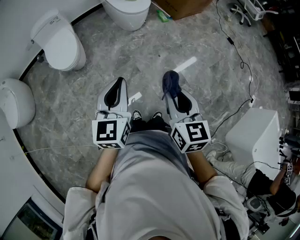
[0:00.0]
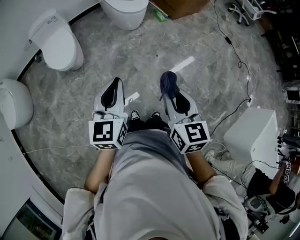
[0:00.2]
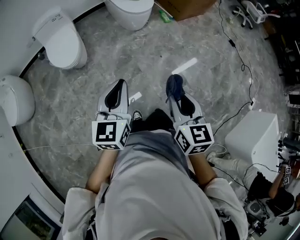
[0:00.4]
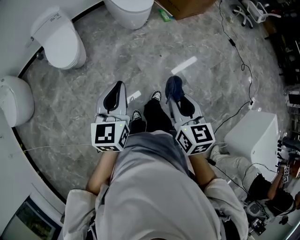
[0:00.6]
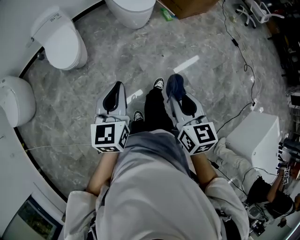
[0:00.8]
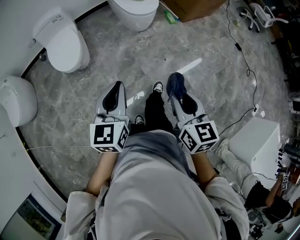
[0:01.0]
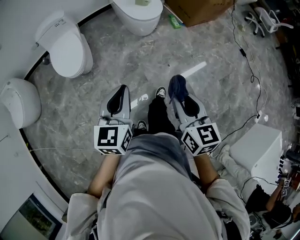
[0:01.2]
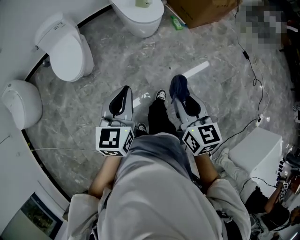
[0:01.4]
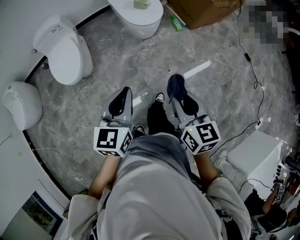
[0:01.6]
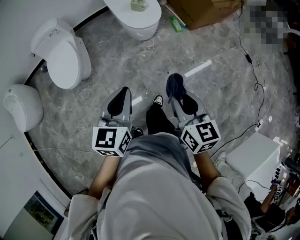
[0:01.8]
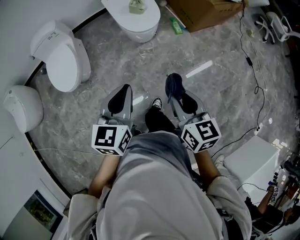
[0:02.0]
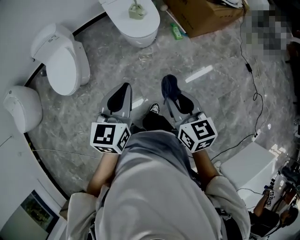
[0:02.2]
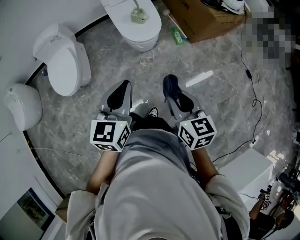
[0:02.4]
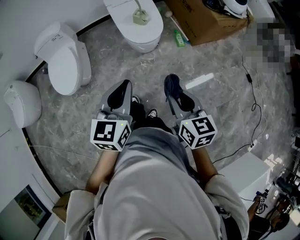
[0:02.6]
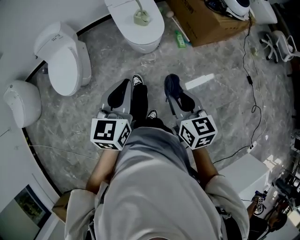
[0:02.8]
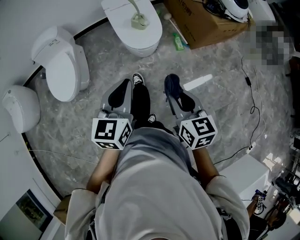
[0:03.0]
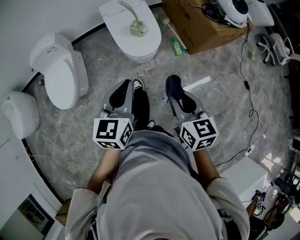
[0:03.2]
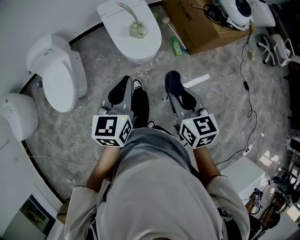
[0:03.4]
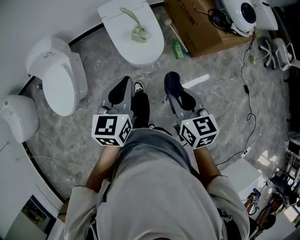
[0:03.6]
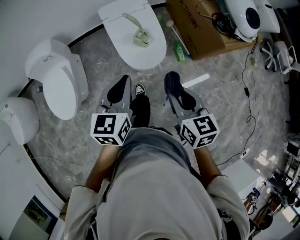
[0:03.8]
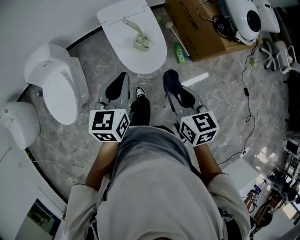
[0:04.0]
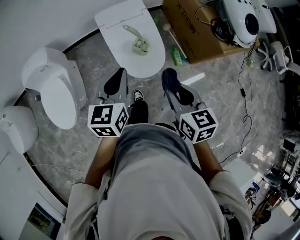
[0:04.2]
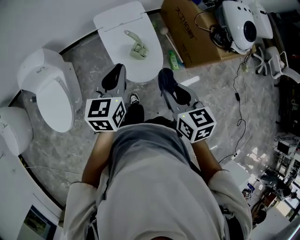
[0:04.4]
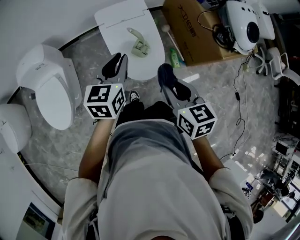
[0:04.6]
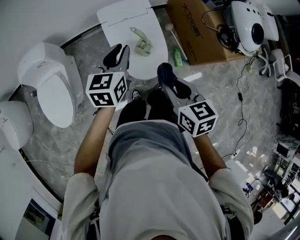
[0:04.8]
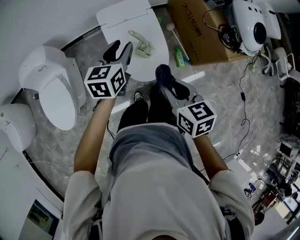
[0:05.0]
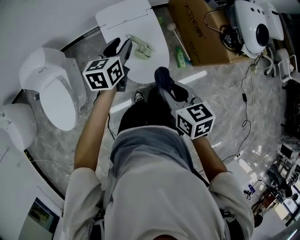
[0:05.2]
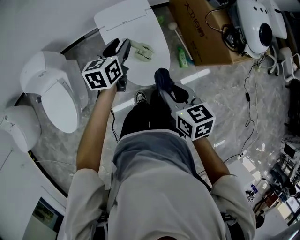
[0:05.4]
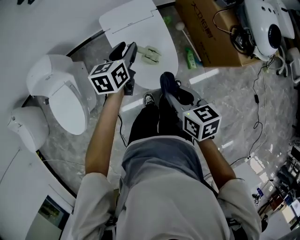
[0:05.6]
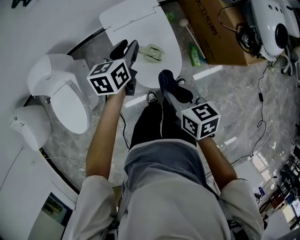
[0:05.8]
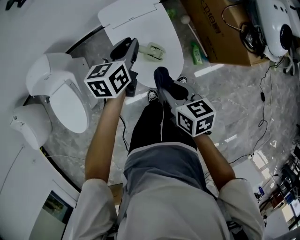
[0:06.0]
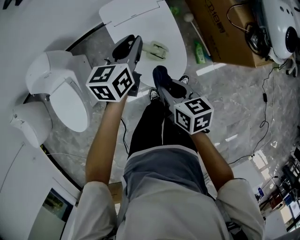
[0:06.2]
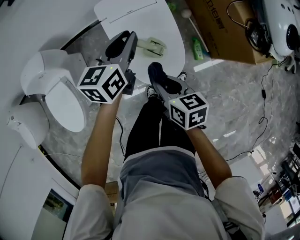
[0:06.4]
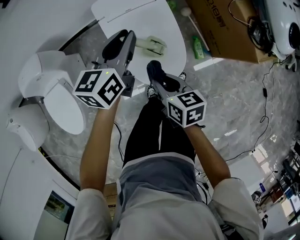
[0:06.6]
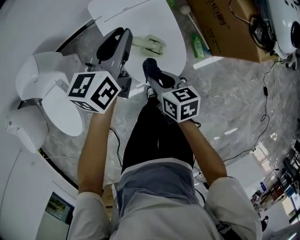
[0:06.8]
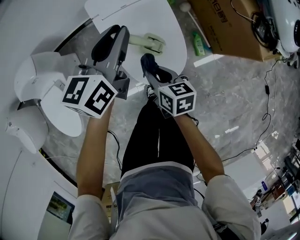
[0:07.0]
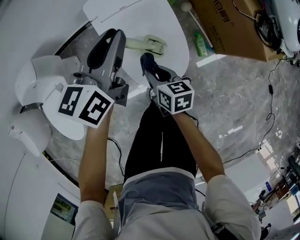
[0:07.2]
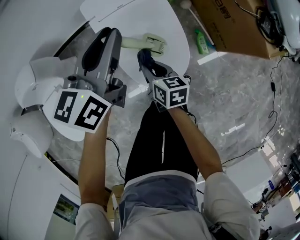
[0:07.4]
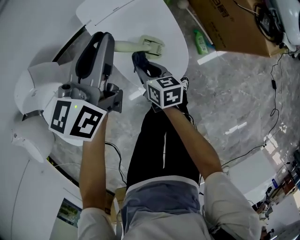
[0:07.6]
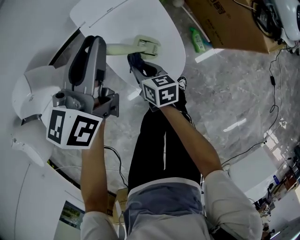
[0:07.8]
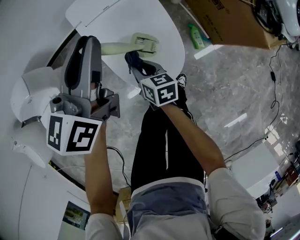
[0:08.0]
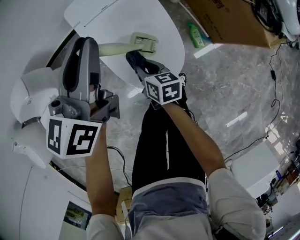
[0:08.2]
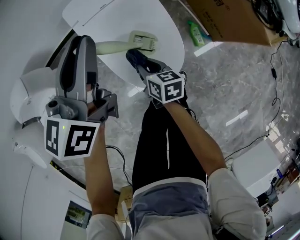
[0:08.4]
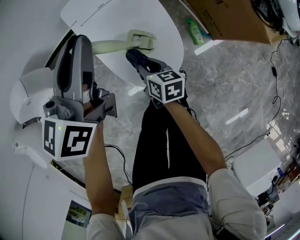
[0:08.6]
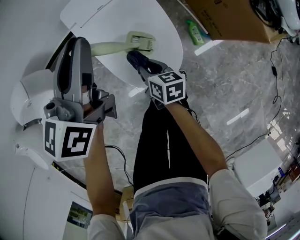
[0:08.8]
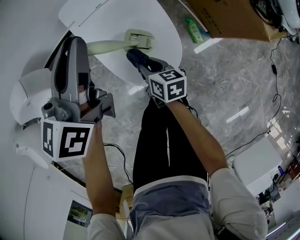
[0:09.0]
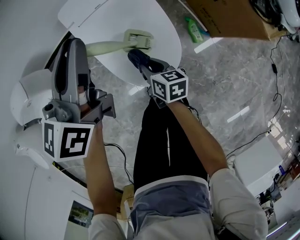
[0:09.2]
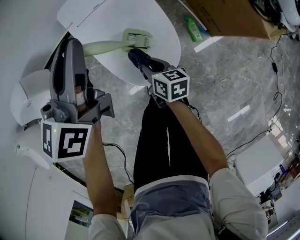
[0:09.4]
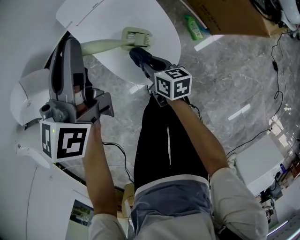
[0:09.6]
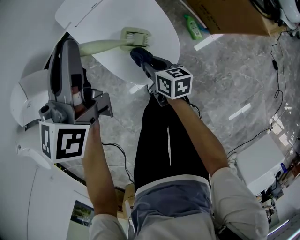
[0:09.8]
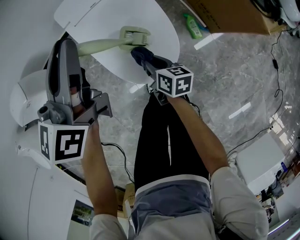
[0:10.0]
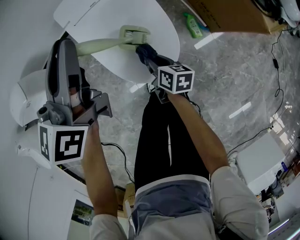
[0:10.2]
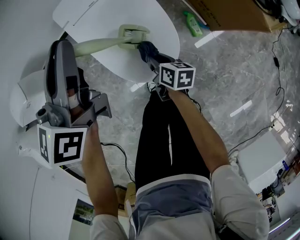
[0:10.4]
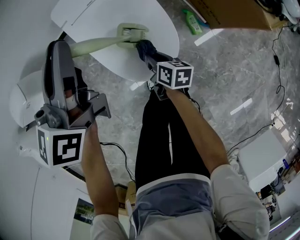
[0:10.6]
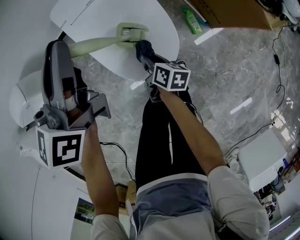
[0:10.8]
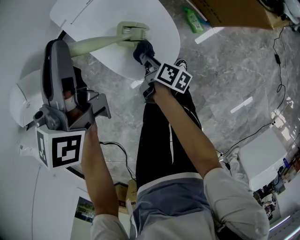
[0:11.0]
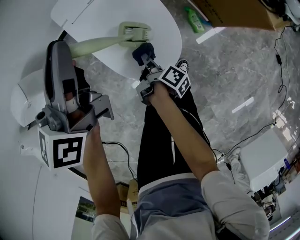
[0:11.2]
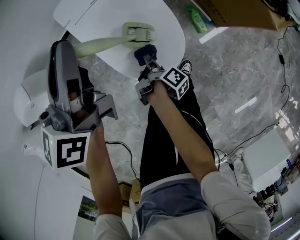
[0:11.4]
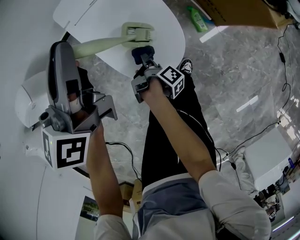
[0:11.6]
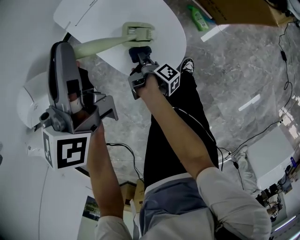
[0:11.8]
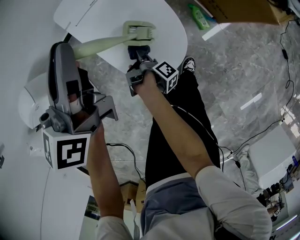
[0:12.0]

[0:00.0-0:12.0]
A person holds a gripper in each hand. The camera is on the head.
0:00.0 to 0:01.6: The grippers both shift forward by approximately 25 cm.
0:01.6 to 0:03.0: Both grippers travel together forward and to the right, approximately 25 cm.
0:03.0 to 0:04.4: The two grippers go some 35 cm forward.
0:04.4 to 0:06.0: The right gripper travels downward and forward by some 20 cm. Meanwhile the left gripper heads forward and downward, covering about 25 cm.
0:06.0 to 0:07.6: The right gripper is displaced downward by some 25 cm.
0:07.6 to 0:09.0: The right gripper ends up some 5 cm from where it was.
0:09.0 to 0:10.4: The right gripper shifts by about 5 cm.
0:10.4 to 0:12.0: The right gripper shifts approximately 5 cm to the left, and rolls clockwise, seen from behind, by some 80 degrees.

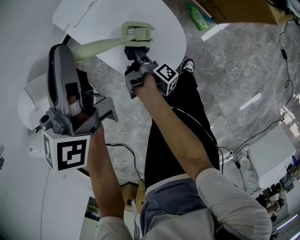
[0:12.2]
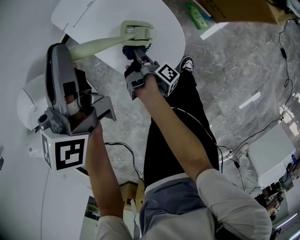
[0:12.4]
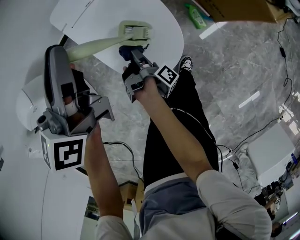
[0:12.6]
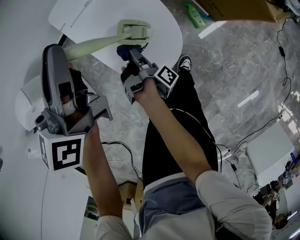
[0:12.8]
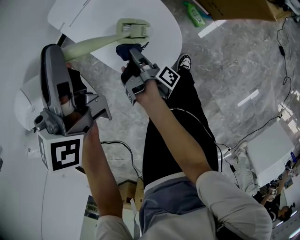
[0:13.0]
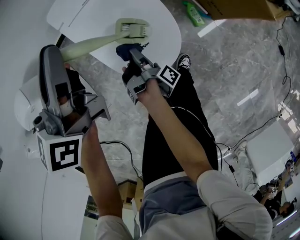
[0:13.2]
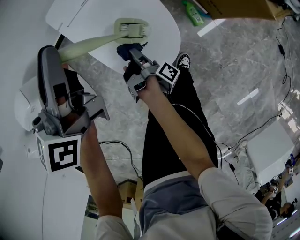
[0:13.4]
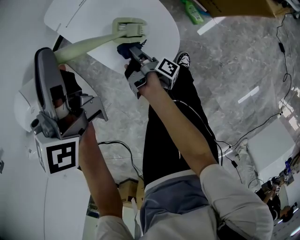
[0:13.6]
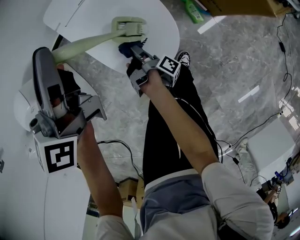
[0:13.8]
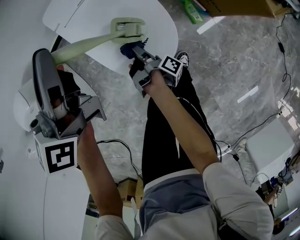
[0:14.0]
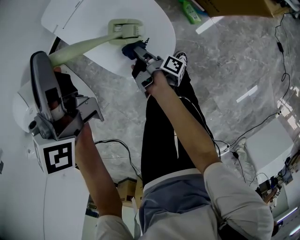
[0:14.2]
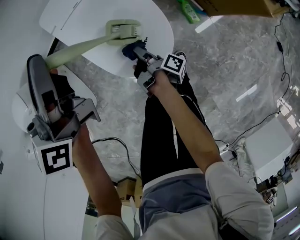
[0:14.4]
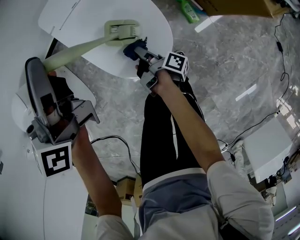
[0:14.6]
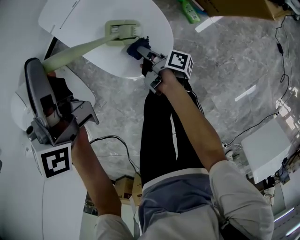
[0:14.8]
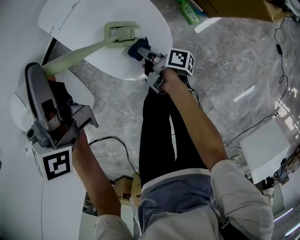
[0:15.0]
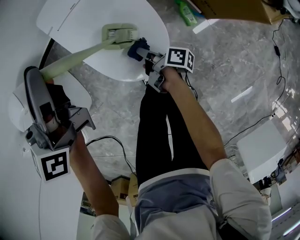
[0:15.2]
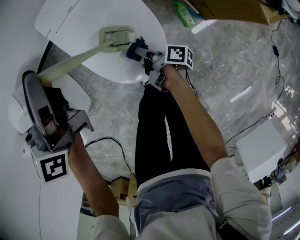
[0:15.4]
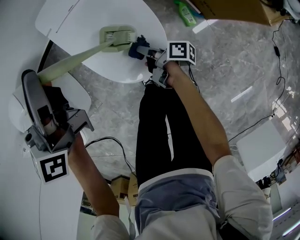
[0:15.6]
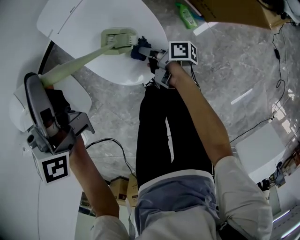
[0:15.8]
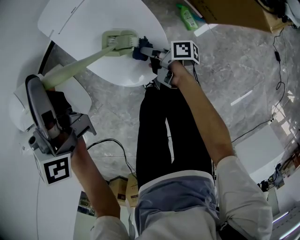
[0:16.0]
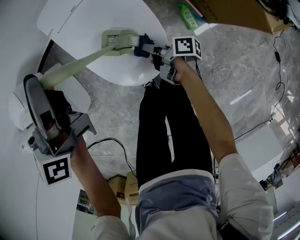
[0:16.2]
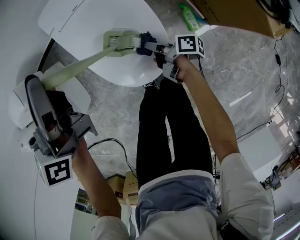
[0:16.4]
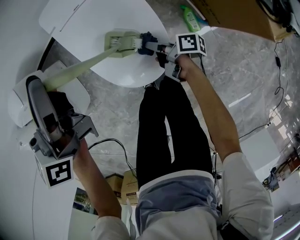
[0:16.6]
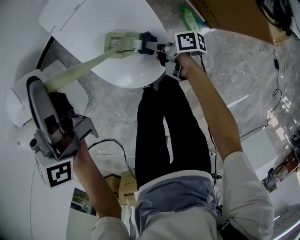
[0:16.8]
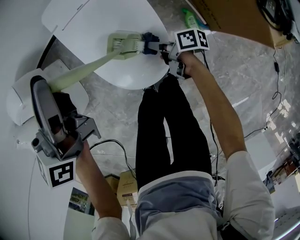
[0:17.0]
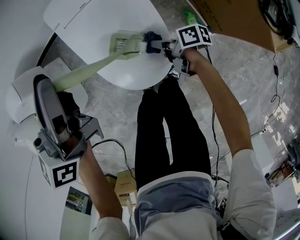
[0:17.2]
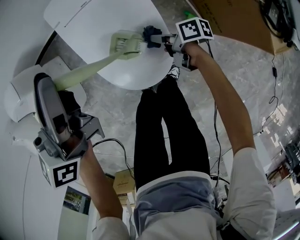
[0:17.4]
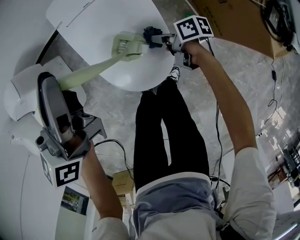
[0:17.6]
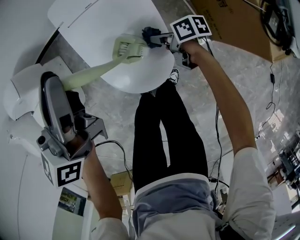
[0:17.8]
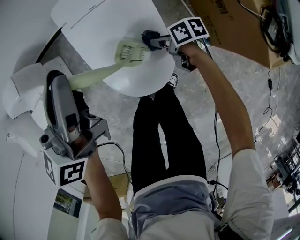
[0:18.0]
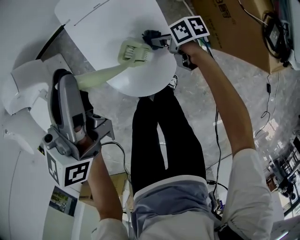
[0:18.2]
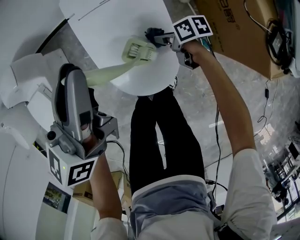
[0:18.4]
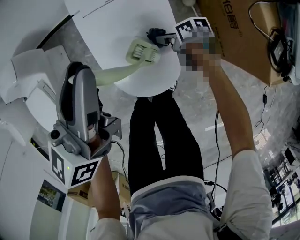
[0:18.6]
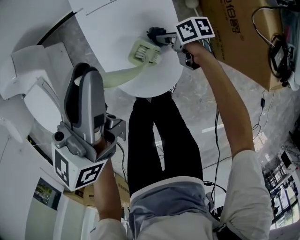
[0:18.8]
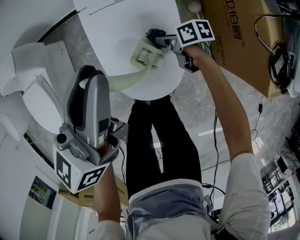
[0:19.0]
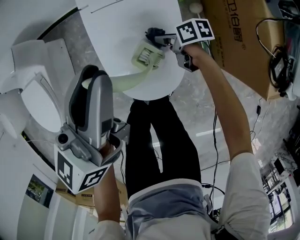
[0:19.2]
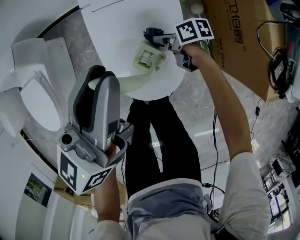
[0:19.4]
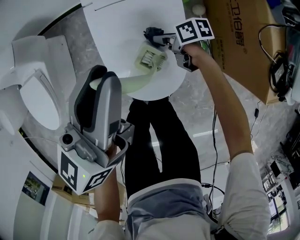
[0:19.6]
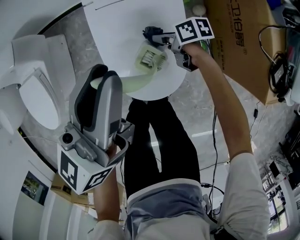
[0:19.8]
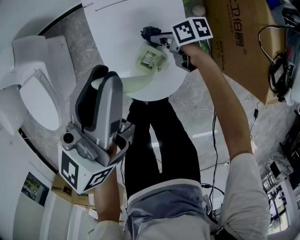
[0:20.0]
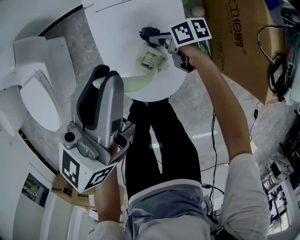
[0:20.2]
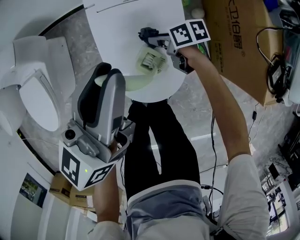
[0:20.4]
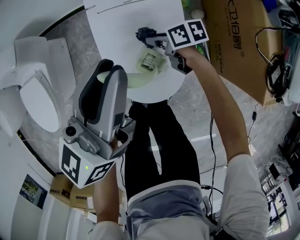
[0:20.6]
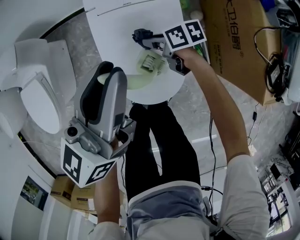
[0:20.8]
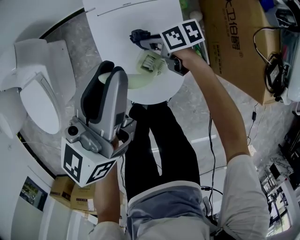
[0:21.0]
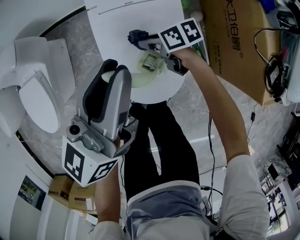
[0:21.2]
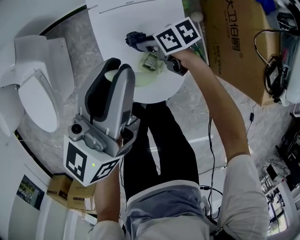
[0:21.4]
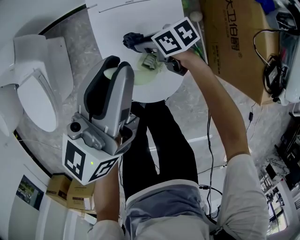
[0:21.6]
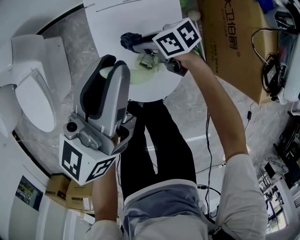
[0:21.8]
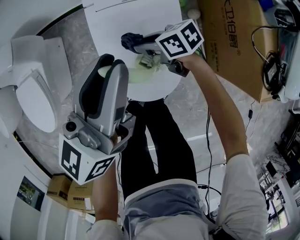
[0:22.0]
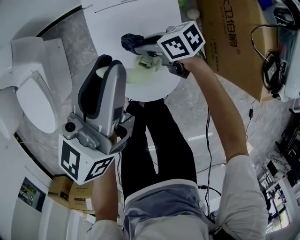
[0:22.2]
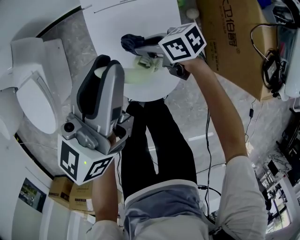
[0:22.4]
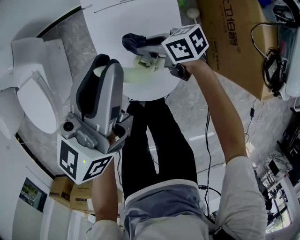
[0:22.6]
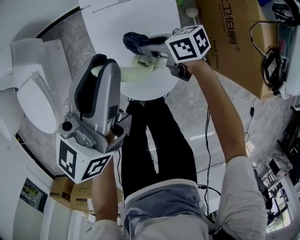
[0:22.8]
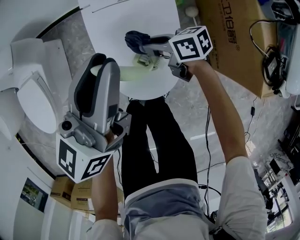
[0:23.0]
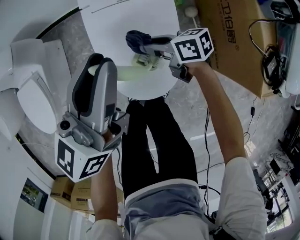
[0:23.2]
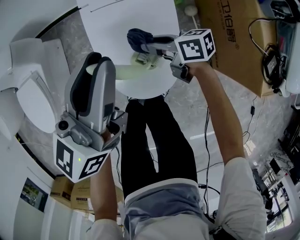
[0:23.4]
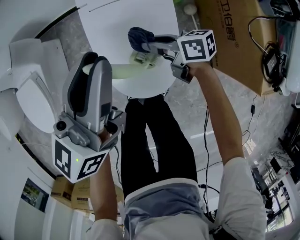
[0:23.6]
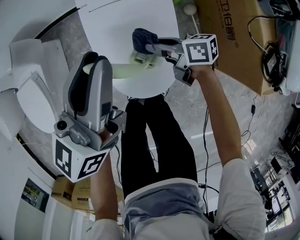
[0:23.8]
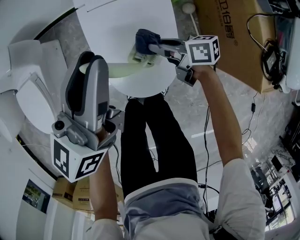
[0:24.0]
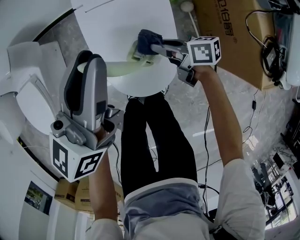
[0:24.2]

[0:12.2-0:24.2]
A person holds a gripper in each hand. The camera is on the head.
0:12.2 to 0:13.8: The grippers move only a little.
0:13.8 to 0:15.2: The right gripper heads to the right, covering some 5 cm, and swivels roughly 40 degrees.
0:15.2 to 0:16.6: The right gripper changes place by some 5 cm.
0:16.6 to 0:18.2: The right gripper heads forward, covering roughly 10 cm, and swivels approximately 50 degrees.
0:18.2 to 0:19.8: The right gripper shifts about 10 cm forward.
0:19.8 to 0:21.2: The right gripper shifts about 5 cm upward.
0:21.2 to 0:22.6: There are only small adjustments of the grippers.
0:22.6 to 0:24.2: The right gripper heads to the right and backward, covering approximately 10 cm, and turns by approximately 20 degrees.
